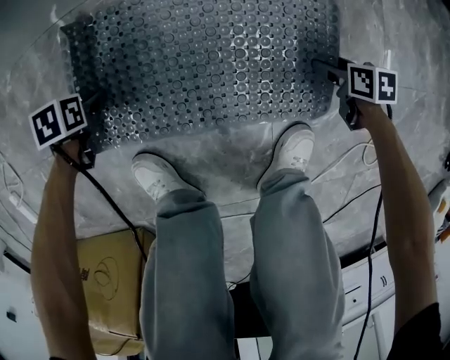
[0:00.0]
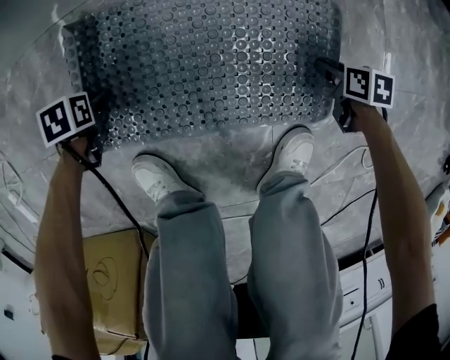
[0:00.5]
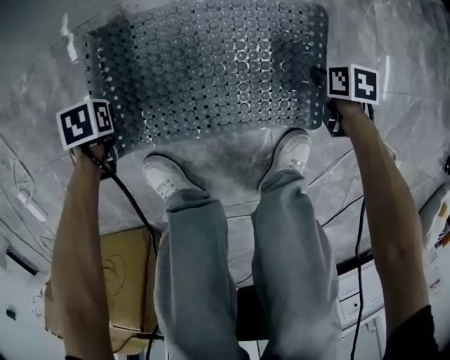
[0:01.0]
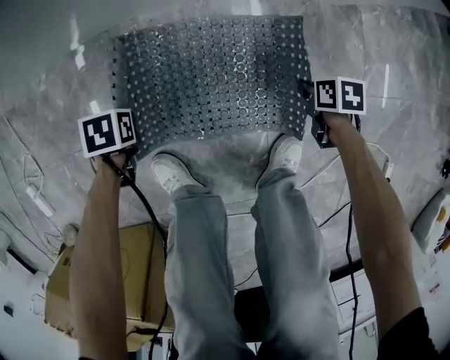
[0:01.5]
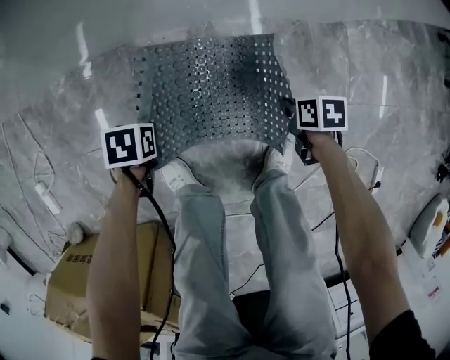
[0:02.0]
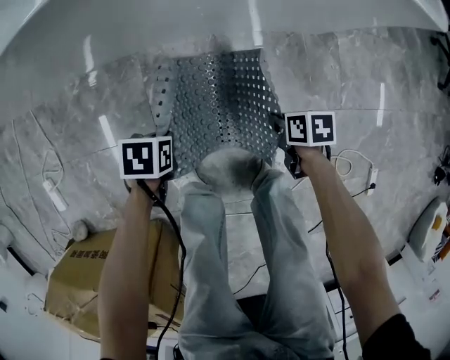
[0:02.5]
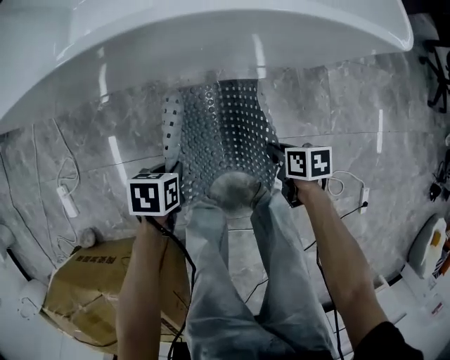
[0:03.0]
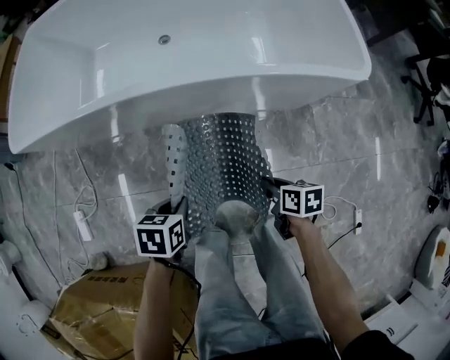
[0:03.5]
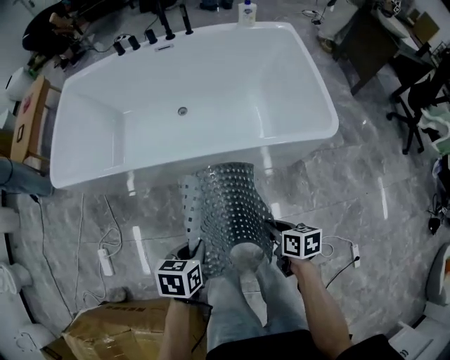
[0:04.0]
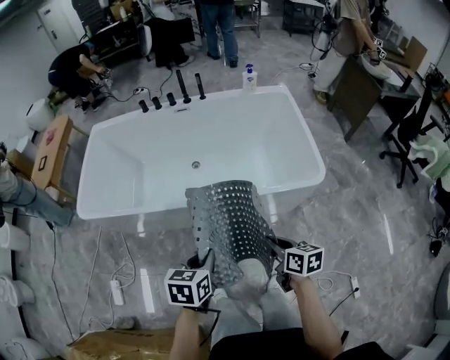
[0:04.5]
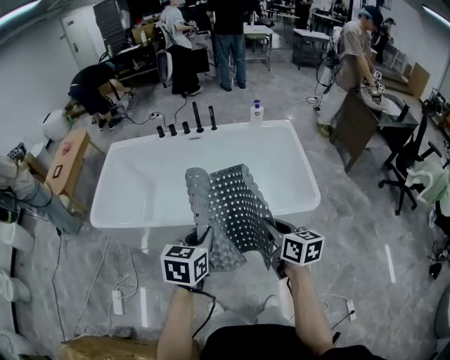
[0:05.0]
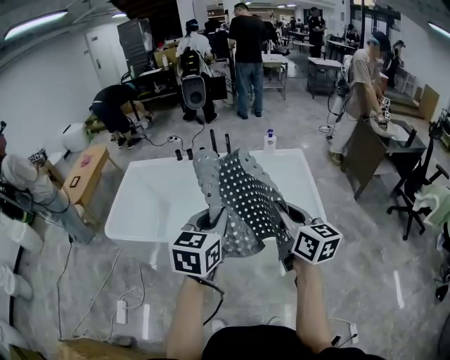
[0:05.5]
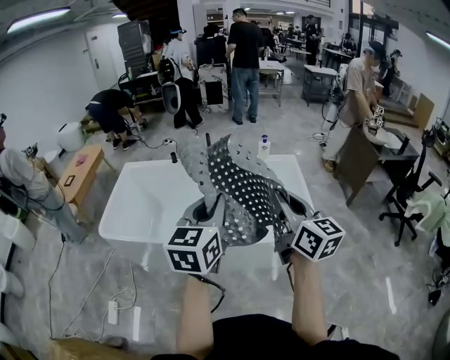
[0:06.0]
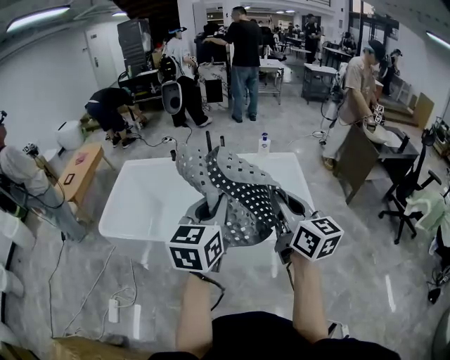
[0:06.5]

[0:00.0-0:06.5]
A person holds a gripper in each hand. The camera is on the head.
0:00.0 to 0:02.0: The two grippers go approximately 15 cm upward. The left gripper closes; the right gripper closes its fingers.
0:02.0 to 0:04.5: Both grippers move upward, roughly 70 cm. The right gripper tips its fingers upward by about 40 degrees, while the left gripper tilts its fingers some 40 degrees upward.
0:04.5 to 0:06.5: Both grippers travel together upward, roughly 35 cm. The left gripper angles its fingers upward, by approximately 40 degrees, while the right gripper tips its fingers upward by some 40 degrees.

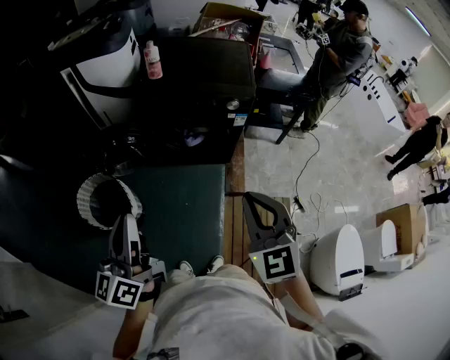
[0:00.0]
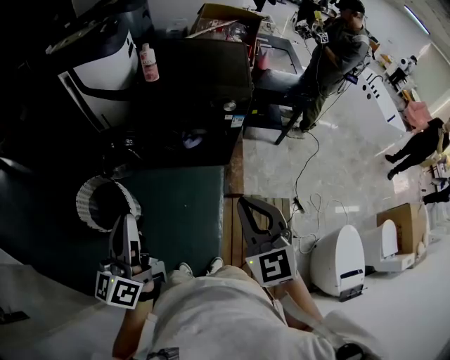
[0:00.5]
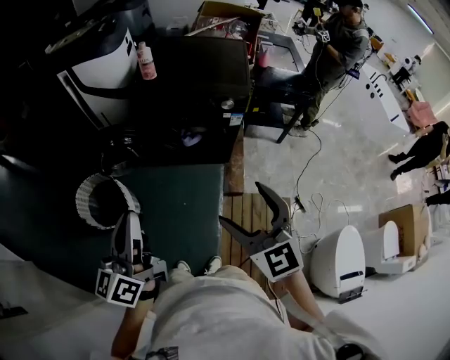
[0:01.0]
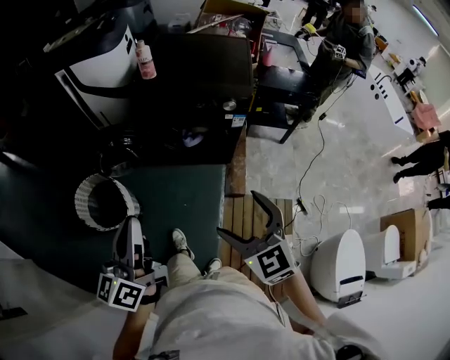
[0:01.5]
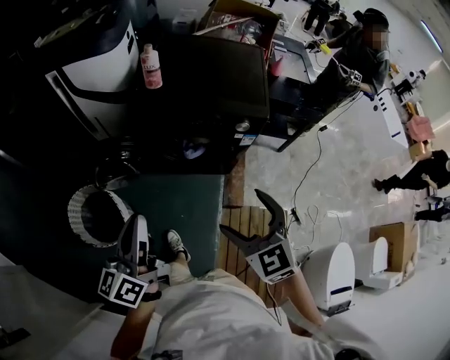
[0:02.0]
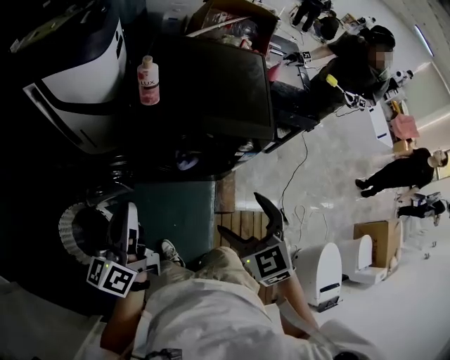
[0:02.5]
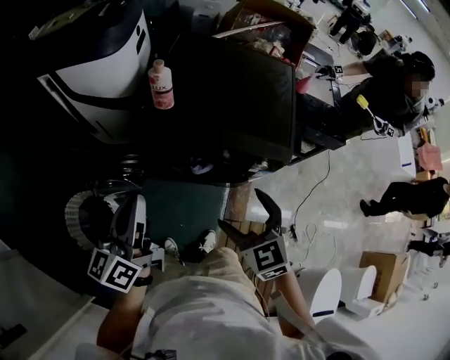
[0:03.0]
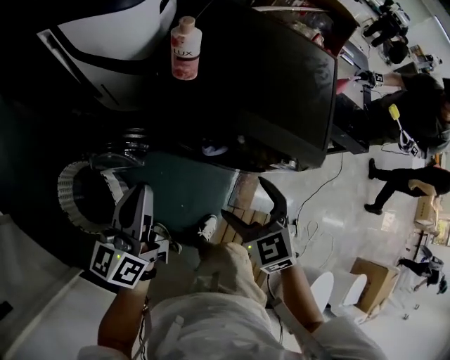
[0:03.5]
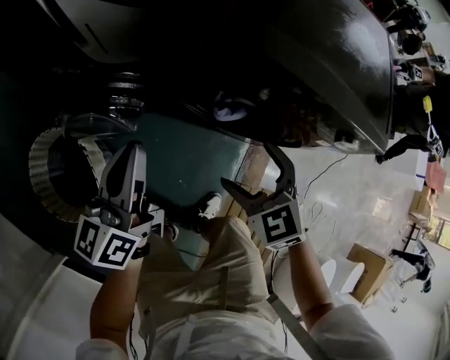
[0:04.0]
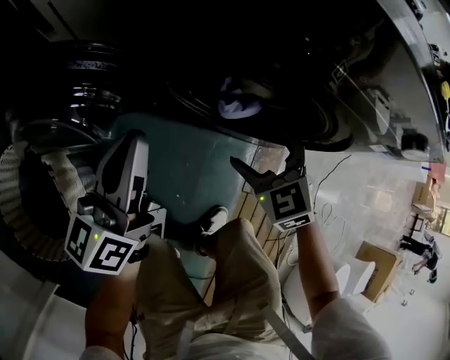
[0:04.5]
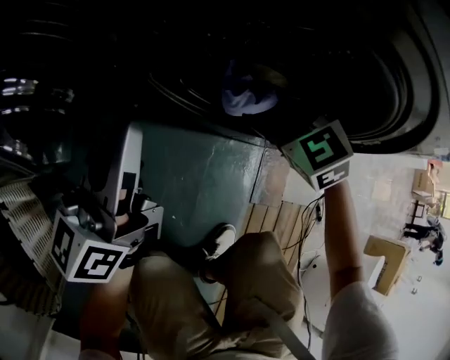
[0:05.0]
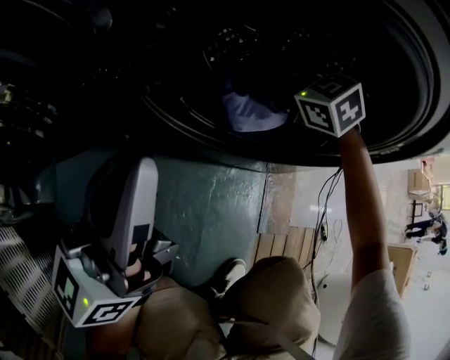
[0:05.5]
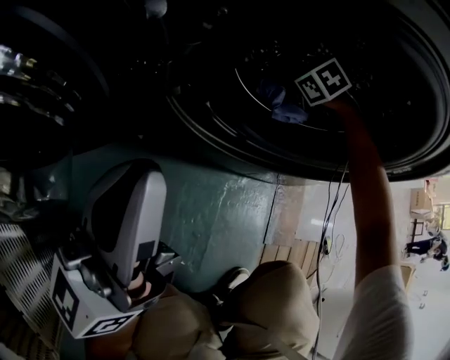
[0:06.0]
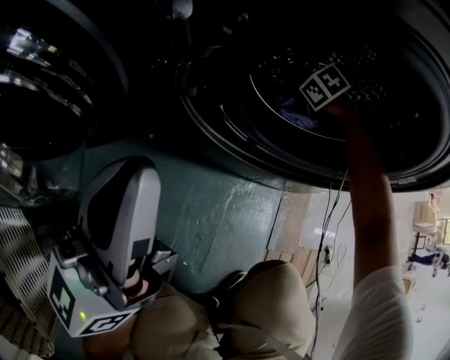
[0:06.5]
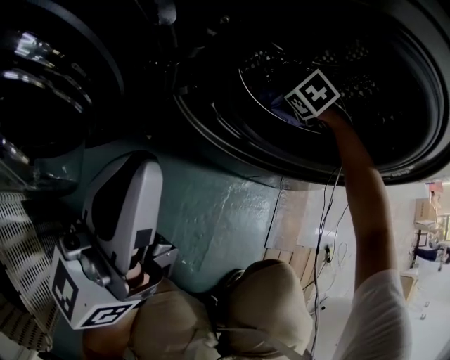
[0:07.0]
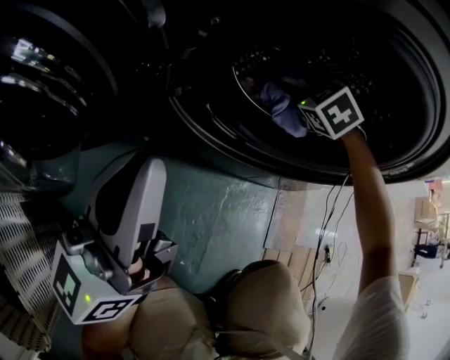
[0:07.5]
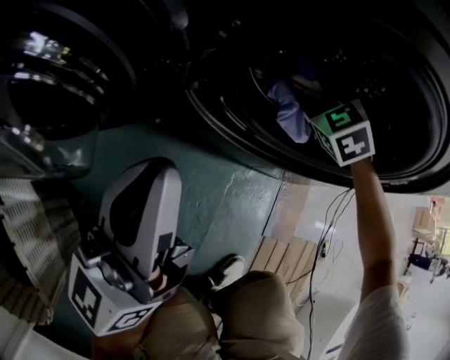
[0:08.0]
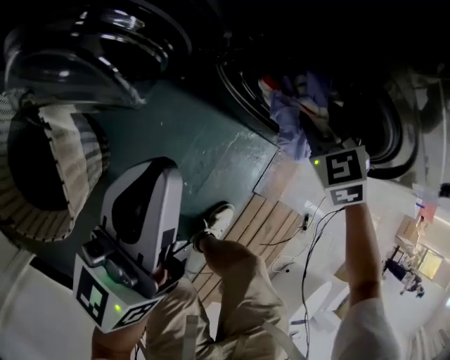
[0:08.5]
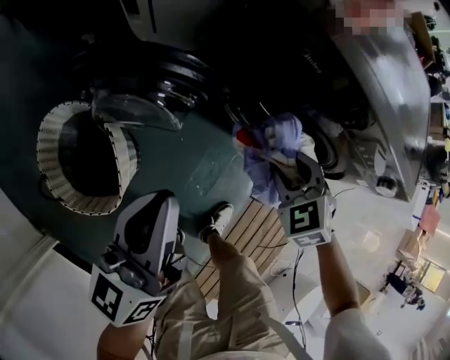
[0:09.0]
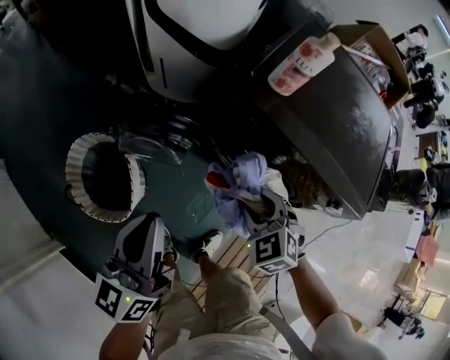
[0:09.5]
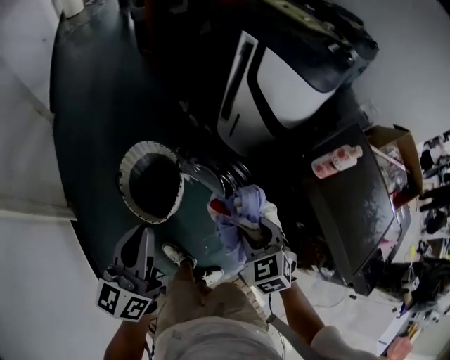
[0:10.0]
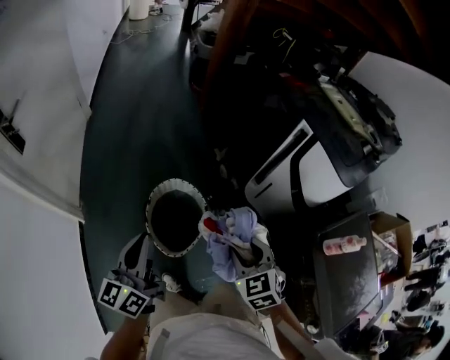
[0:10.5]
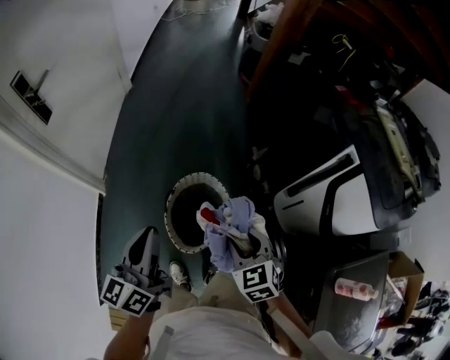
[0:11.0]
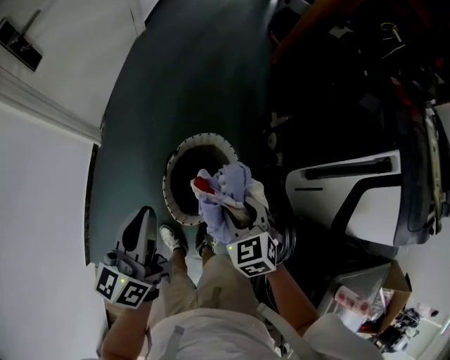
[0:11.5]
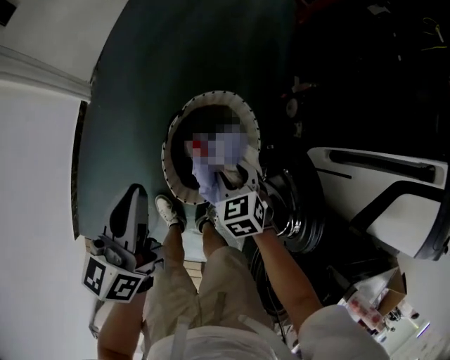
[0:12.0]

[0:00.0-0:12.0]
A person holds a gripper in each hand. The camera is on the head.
0:00.0 to 0:02.0: The right gripper goes some 20 cm forward and downward, and opens its fingers, while the left gripper moves forward, roughly 20 cm.
0:02.0 to 0:04.0: Both grippers move downward and forward, approximately 40 cm. The right gripper swivels some 20 degrees.
0:04.0 to 0:06.0: Both grippers travel together downward, some 35 cm. The right gripper swivels some 30 degrees. Meanwhile the left gripper swivels approximately 30 degrees.
0:06.0 to 0:08.0: The right gripper travels upward by roughly 10 cm, swivels some 30 degrees, and closes.
0:08.0 to 0:10.0: The two grippers go roughly 50 cm upward. The right gripper turns by some 40 degrees; the left gripper rotates roughly 50 degrees.
0:10.0 to 0:12.0: The right gripper changes place by roughly 50 cm, and turns by about 40 degrees. The left gripper changes place by some 35 cm, and changes its angle by roughly 40 degrees.

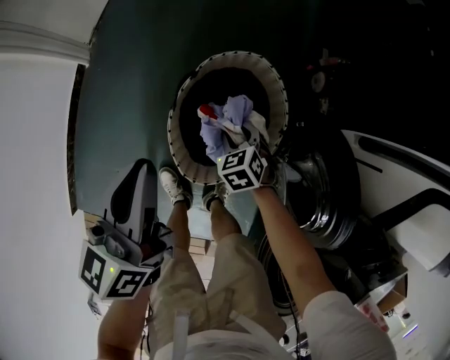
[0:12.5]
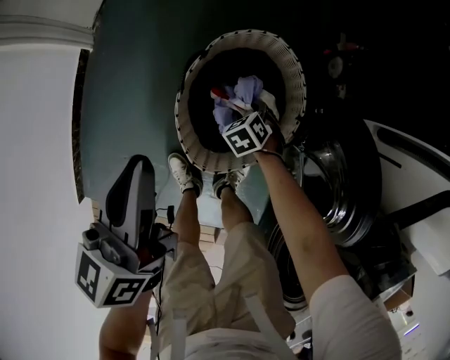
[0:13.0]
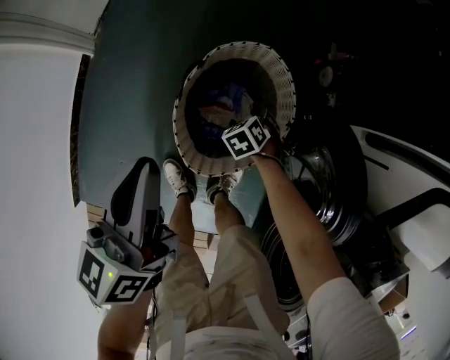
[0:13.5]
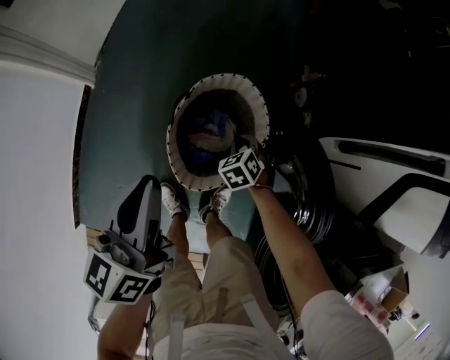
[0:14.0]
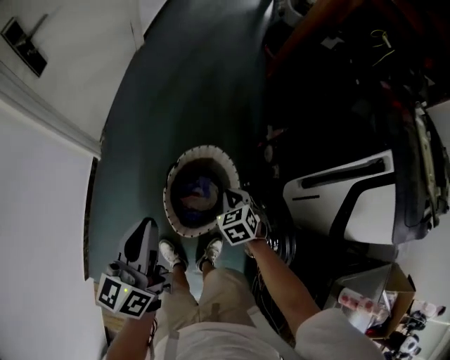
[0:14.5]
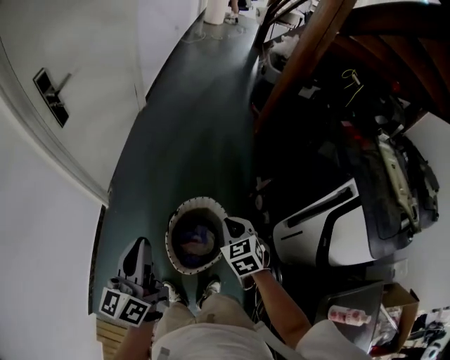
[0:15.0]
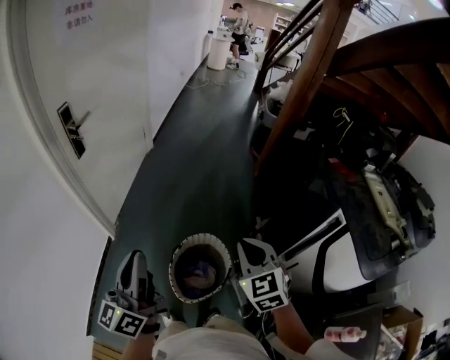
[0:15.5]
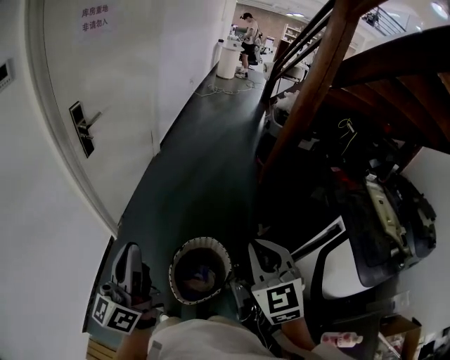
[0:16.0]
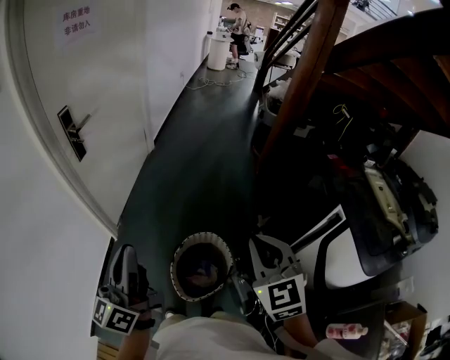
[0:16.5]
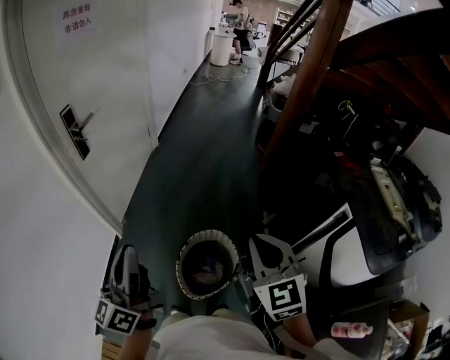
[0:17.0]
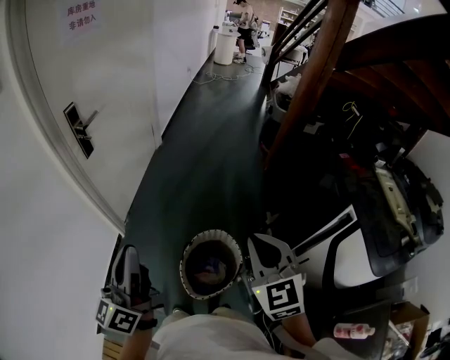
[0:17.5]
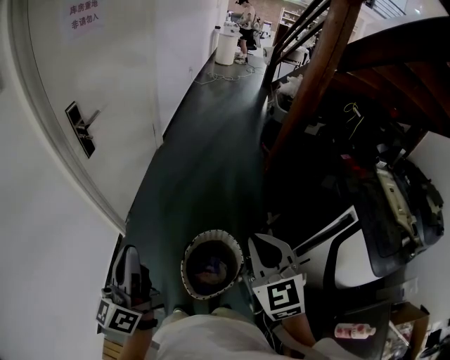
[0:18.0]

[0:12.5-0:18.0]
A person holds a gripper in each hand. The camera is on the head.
0:12.5 to 0:14.5: The grippers both shift upward by approximately 25 cm.
0:14.5 to 0:16.0: The left gripper goes about 25 cm upward, and turns by some 30 degrees, while the right gripper shifts some 50 cm upward, and tips its fingers upward by about 40 degrees.
0:16.0 to 0:18.0: The left gripper shifts by approximately 5 cm.

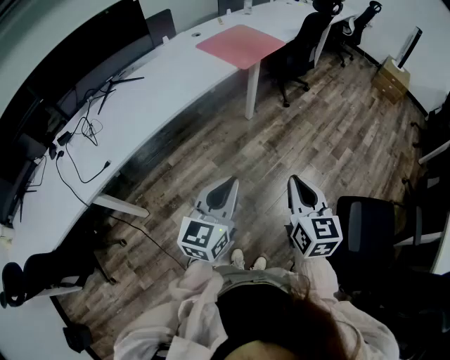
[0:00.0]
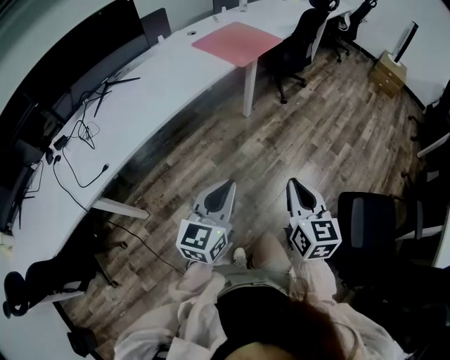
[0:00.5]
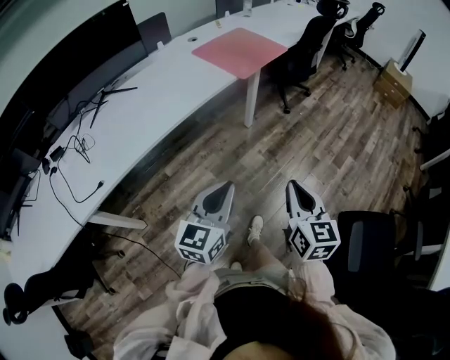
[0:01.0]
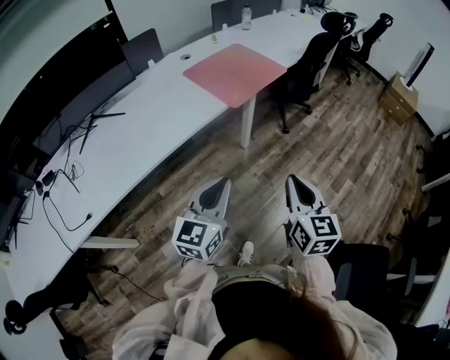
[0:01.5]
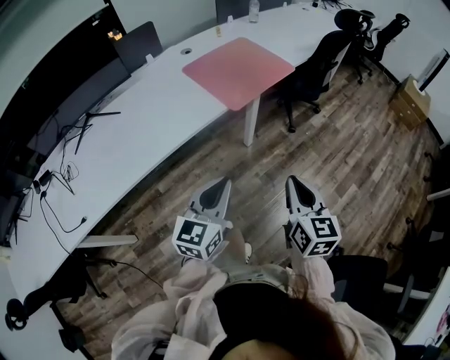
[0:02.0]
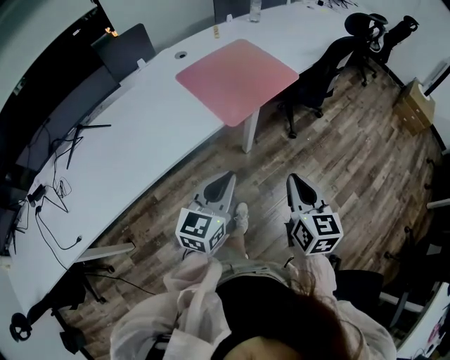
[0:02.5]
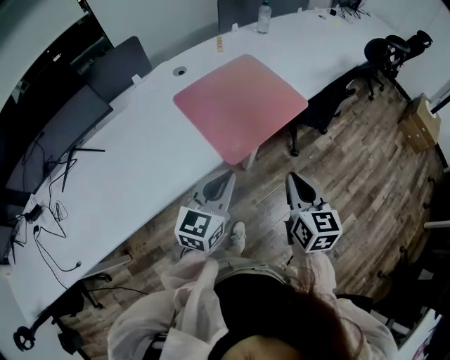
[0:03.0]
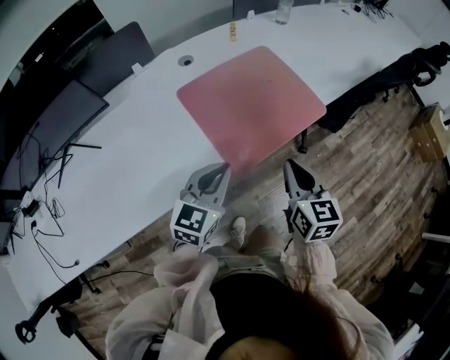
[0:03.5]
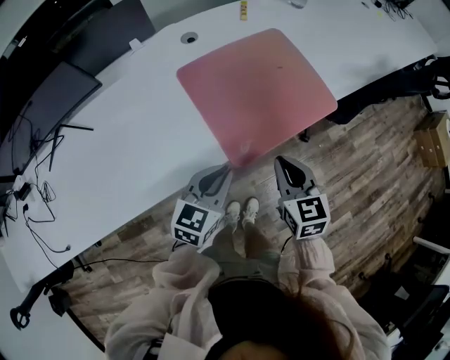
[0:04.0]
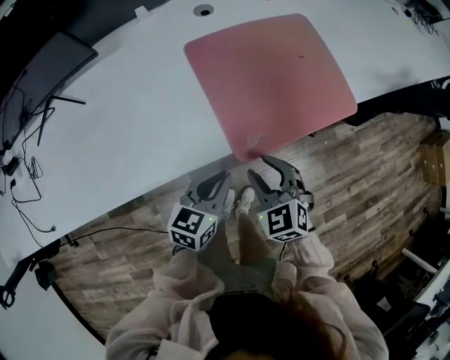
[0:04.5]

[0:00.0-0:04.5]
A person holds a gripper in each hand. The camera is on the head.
0:00.0 to 0:02.0: Both grippers move forward, some 35 cm.
0:02.0 to 0:04.5: The grippers both shift forward and downward by about 40 cm. The right gripper swivels roughly 60 degrees, and opens its fingers, while the left gripper rotates roughly 30 degrees.
